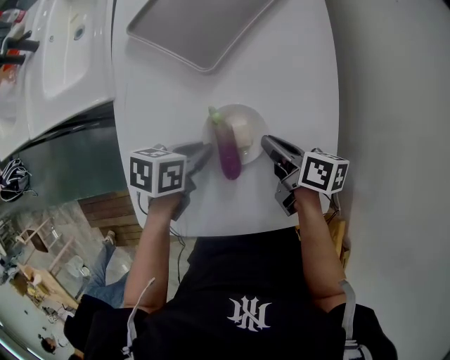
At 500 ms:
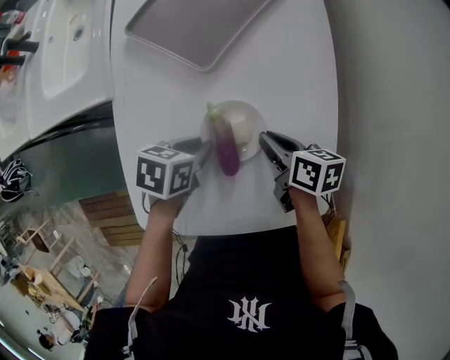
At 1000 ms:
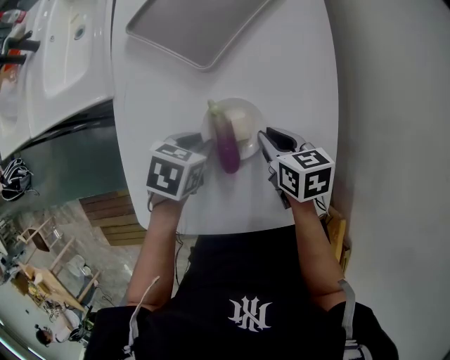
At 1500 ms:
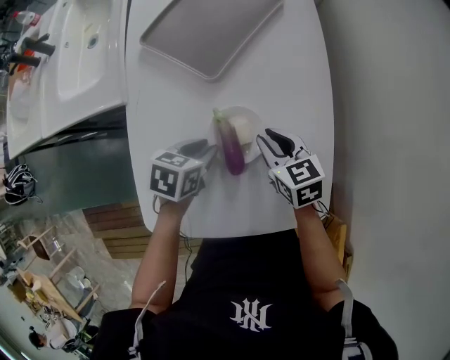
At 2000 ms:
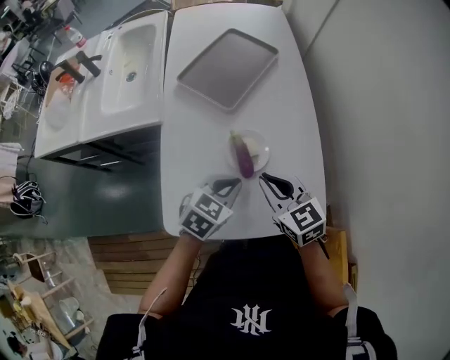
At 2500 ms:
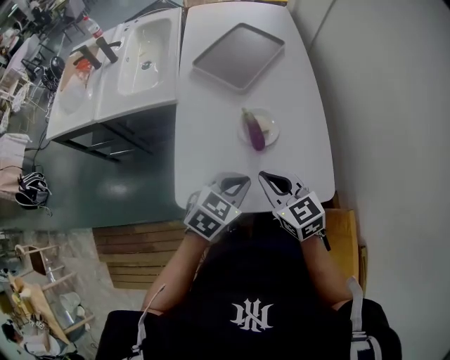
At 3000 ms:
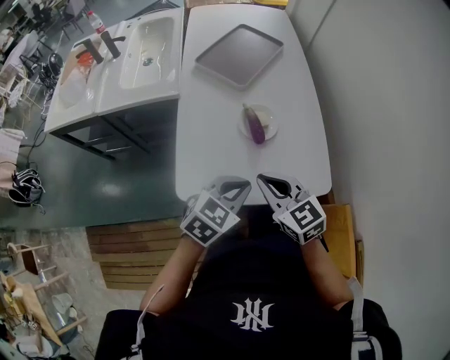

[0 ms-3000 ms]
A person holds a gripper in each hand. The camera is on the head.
0 ms to 1500 ms: The right gripper twists approximately 50 degrees counterclockwise, seen from behind.
1500 ms to 3000 ms: The right gripper changes place by roughly 30 cm, and swivels roughly 20 degrees.

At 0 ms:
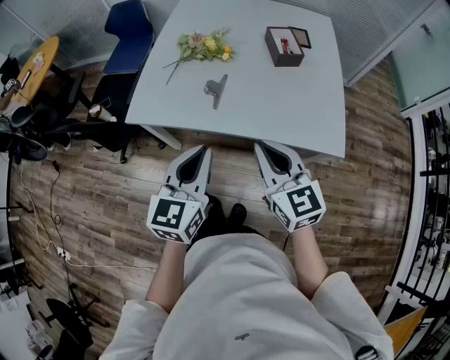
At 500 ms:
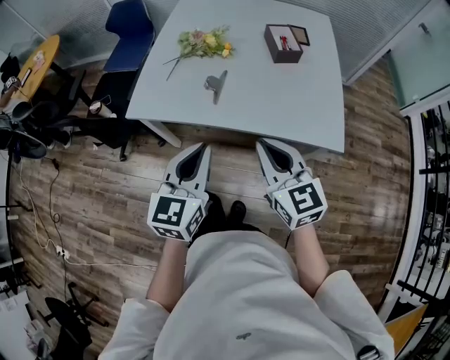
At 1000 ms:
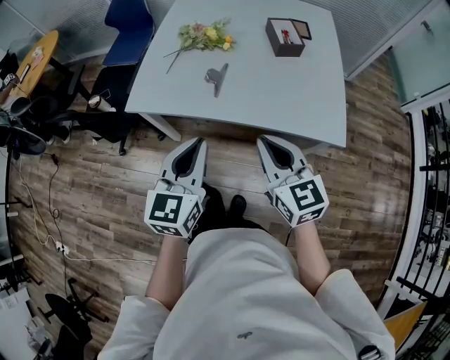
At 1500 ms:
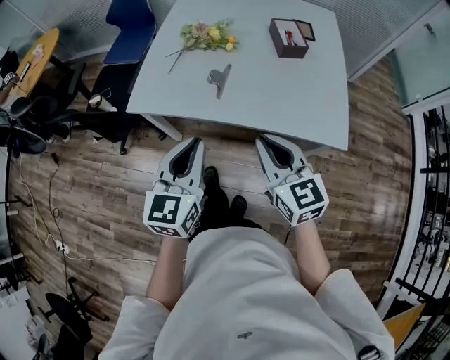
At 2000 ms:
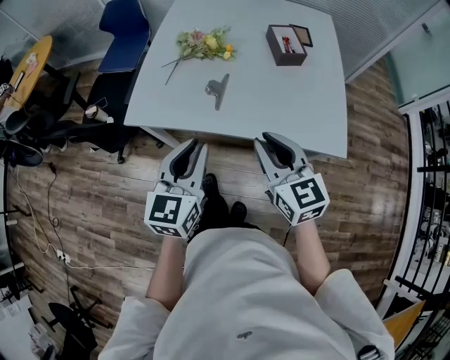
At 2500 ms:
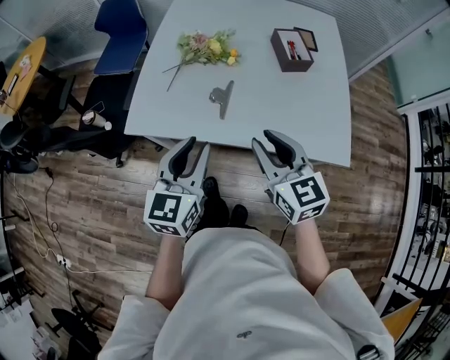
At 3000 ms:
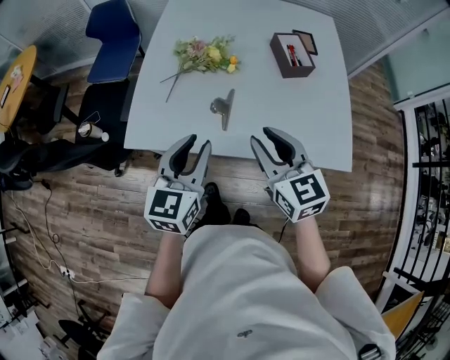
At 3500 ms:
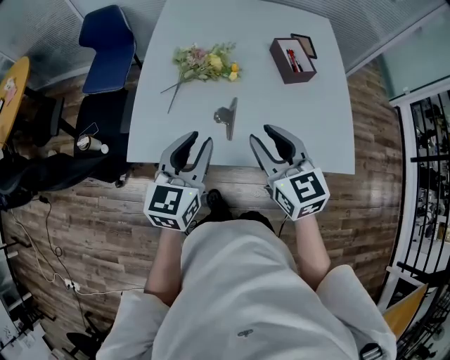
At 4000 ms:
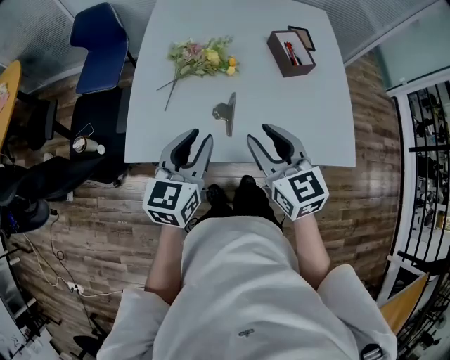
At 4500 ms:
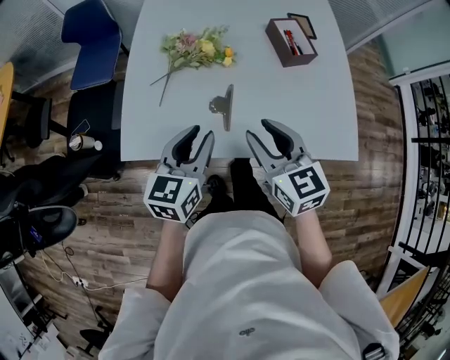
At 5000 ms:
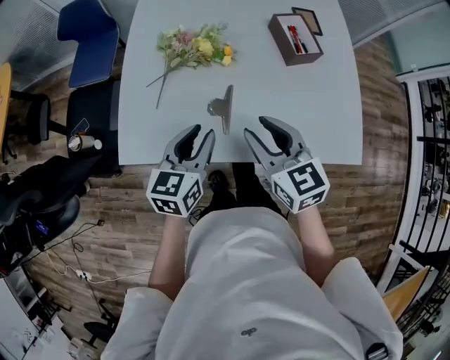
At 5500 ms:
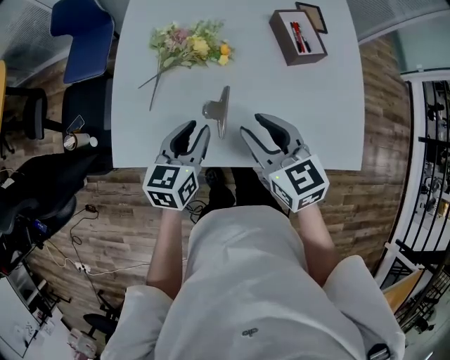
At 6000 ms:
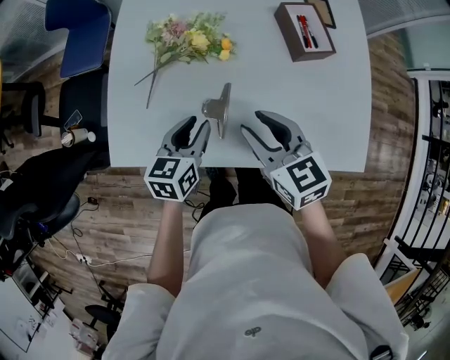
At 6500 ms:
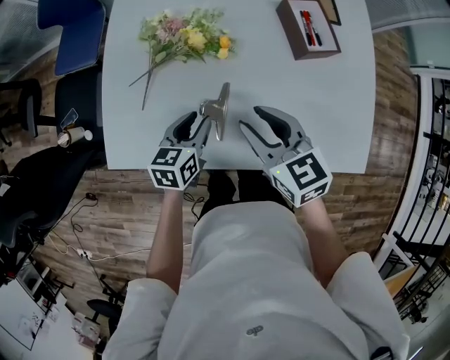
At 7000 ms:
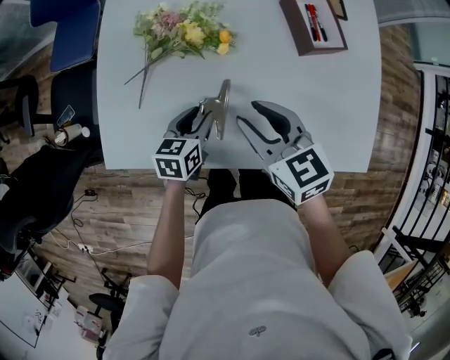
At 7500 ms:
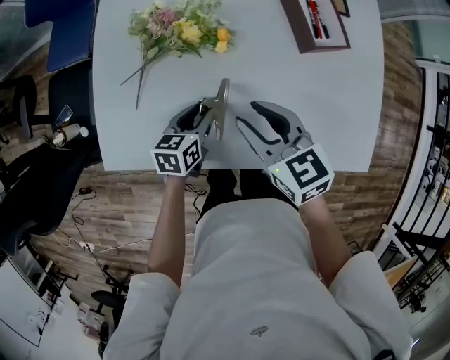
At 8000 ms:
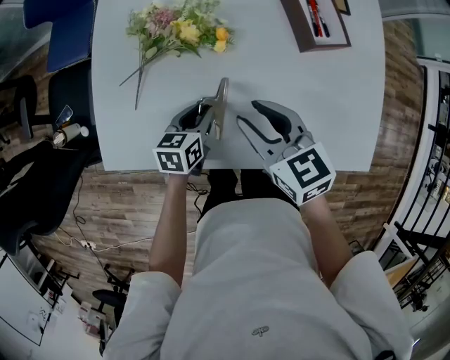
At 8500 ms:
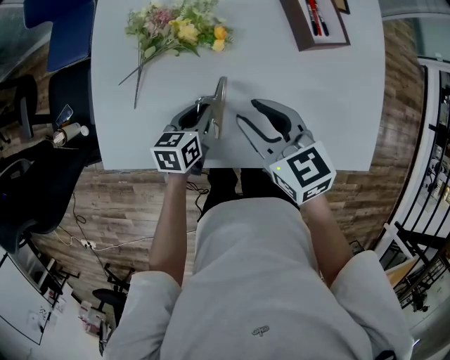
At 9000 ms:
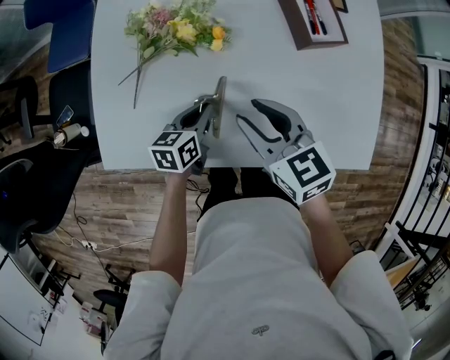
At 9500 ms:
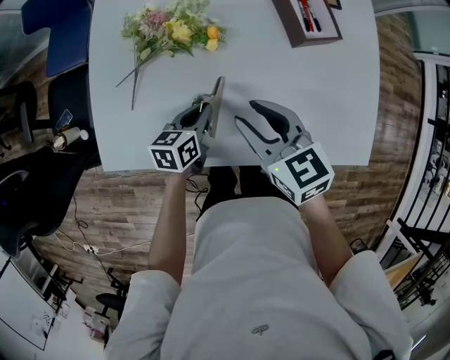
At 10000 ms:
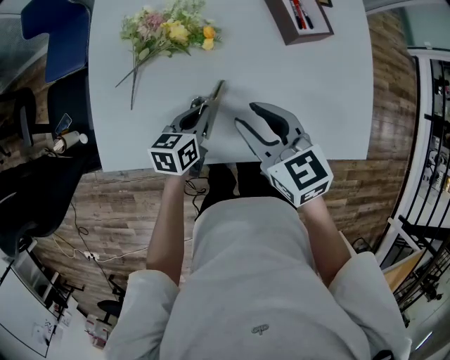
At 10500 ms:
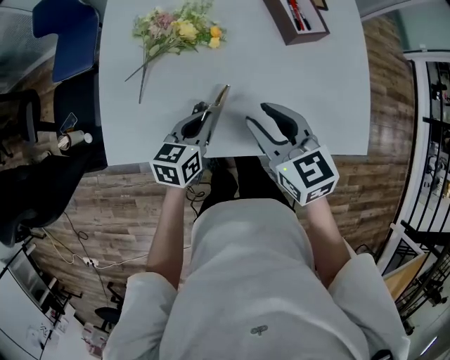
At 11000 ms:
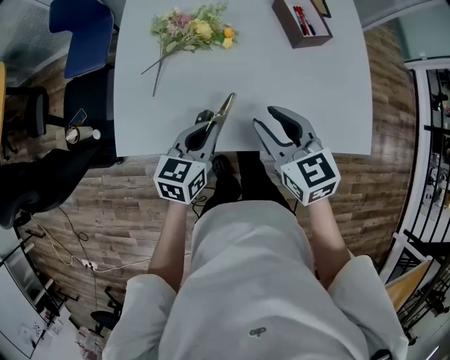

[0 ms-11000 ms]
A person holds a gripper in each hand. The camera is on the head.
0 ms to 2000 ms: There are only small adjustments of the grippers.
2000 ms to 3500 ms: The left gripper travels forward by approximately 15 cm. Meanwhile the right gripper moves forward and to the left, roughly 15 cm.
3500 ms to 5500 ms: The left gripper is displaced downward and forward by approximately 15 cm; the right gripper travels forward and downward by about 10 cm.
5500 ms to 7500 ms: The left gripper heads downward, covering some 15 cm. The right gripper is displaced downward and forward by some 10 cm.
7500 ms to 9000 ms: The left gripper closes up.
9000 ms to 11000 ms: The left gripper heads upward and backward, covering approximately 15 cm, and swivels roughly 20 degrees. Meanwhile the right gripper goes about 10 cm backward.

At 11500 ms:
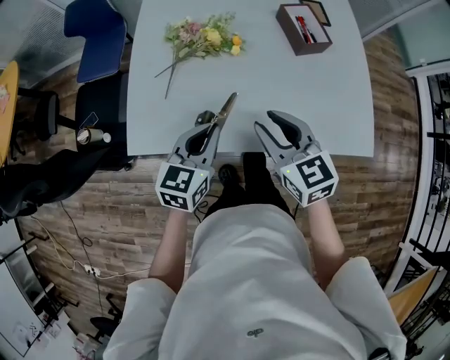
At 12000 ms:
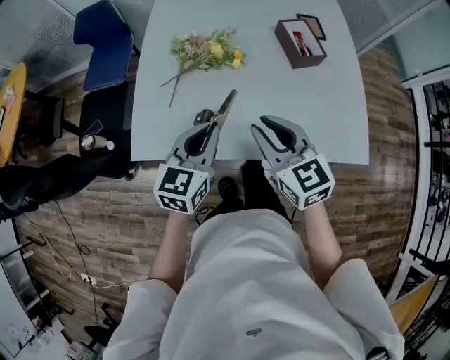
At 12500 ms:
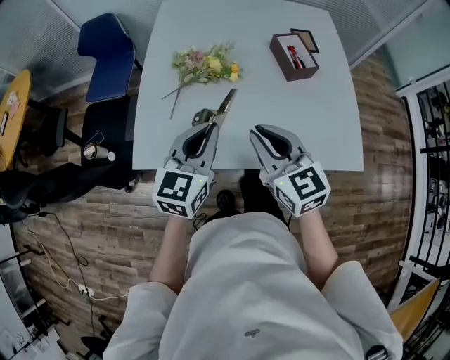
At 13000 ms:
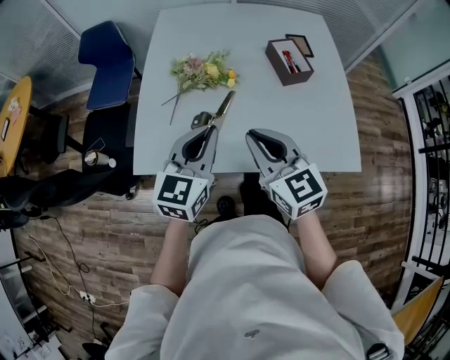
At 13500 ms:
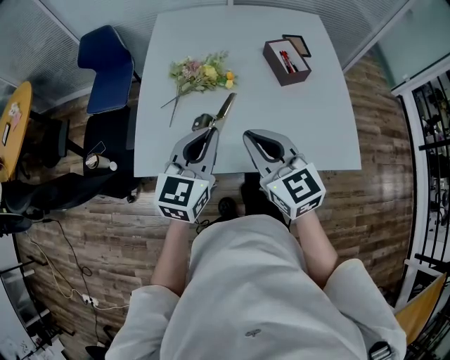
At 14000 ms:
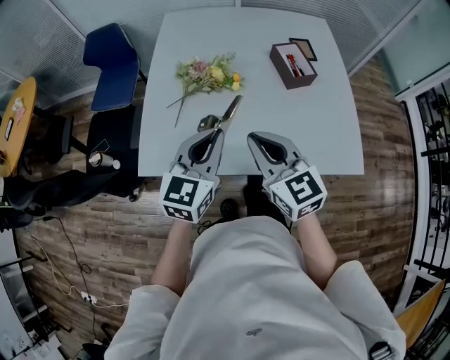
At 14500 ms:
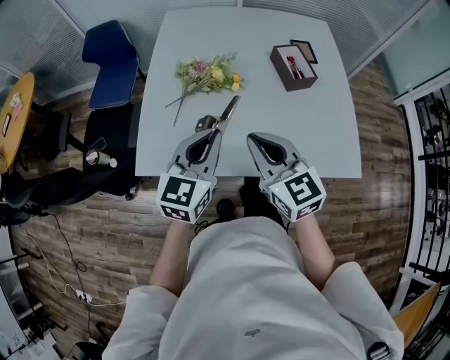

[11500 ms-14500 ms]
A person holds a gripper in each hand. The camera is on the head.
11500 ms to 13000 ms: The grippers both shift upward by about 10 cm. The right gripper closes its fingers.
13000 ms to 14500 ms: Neither gripper changes place.

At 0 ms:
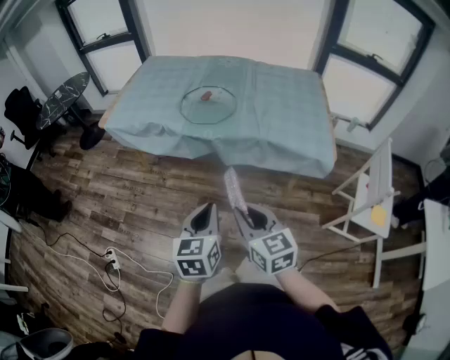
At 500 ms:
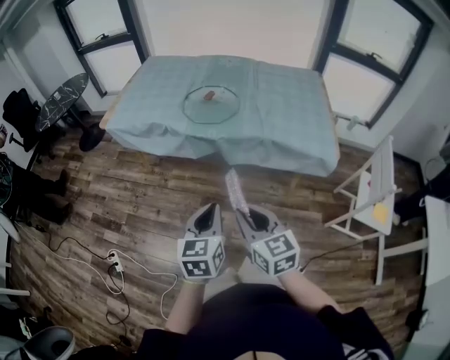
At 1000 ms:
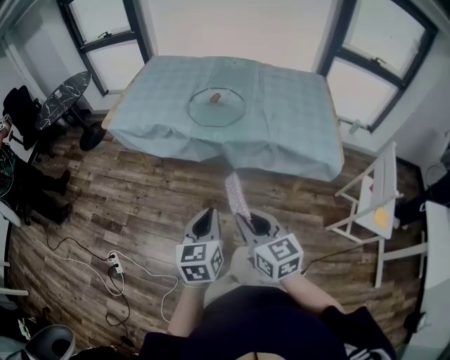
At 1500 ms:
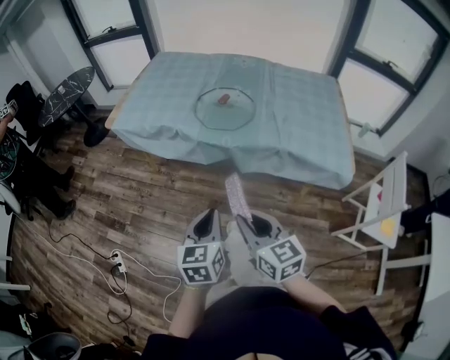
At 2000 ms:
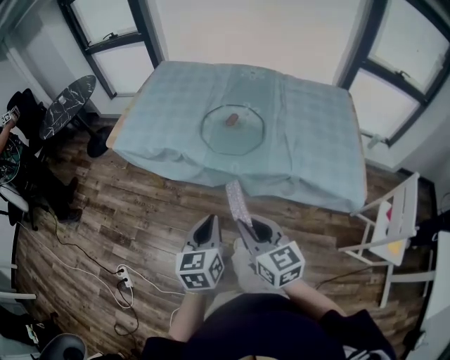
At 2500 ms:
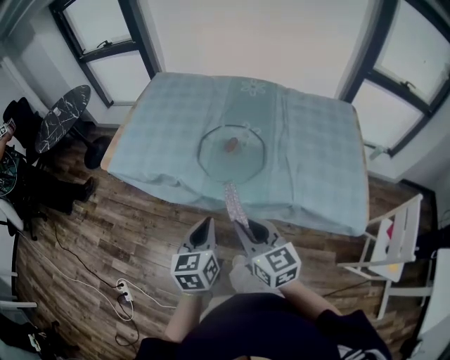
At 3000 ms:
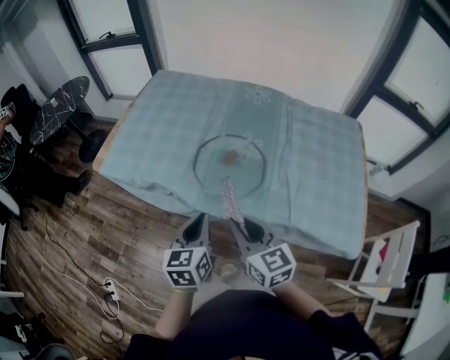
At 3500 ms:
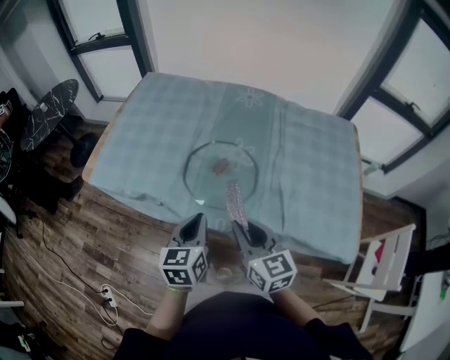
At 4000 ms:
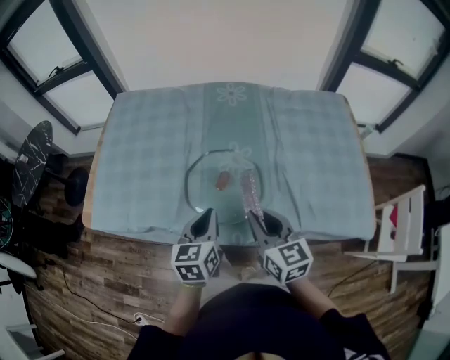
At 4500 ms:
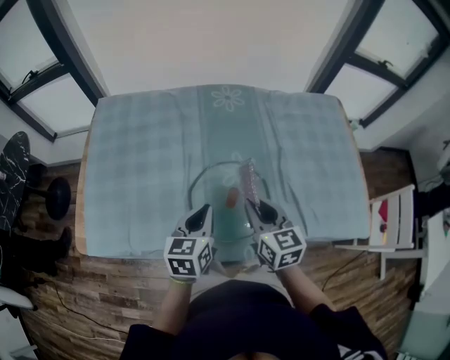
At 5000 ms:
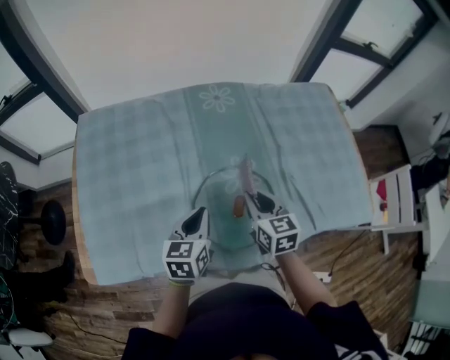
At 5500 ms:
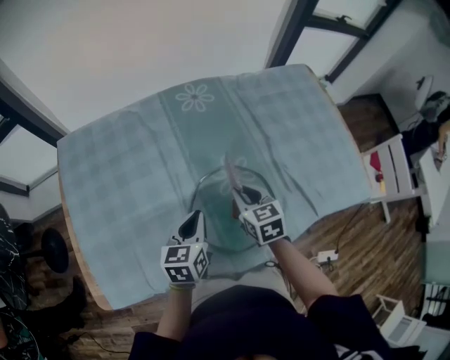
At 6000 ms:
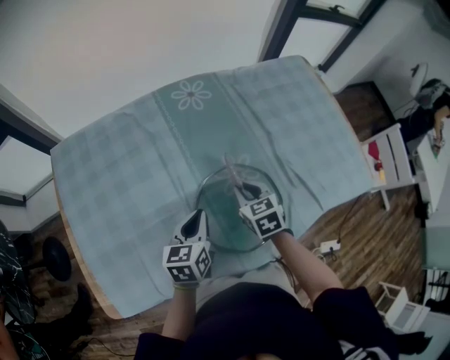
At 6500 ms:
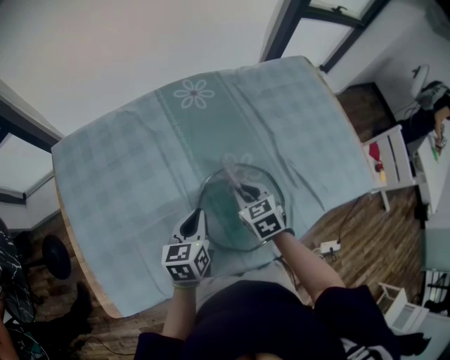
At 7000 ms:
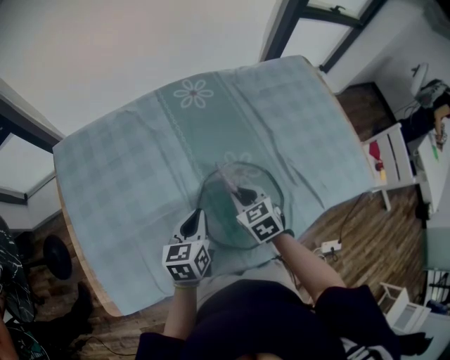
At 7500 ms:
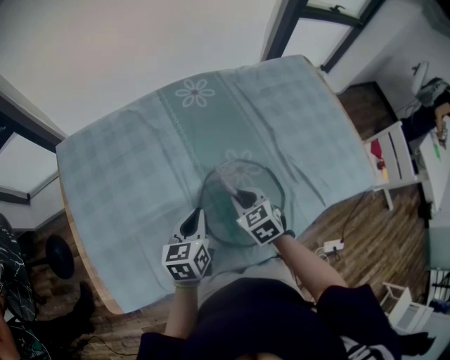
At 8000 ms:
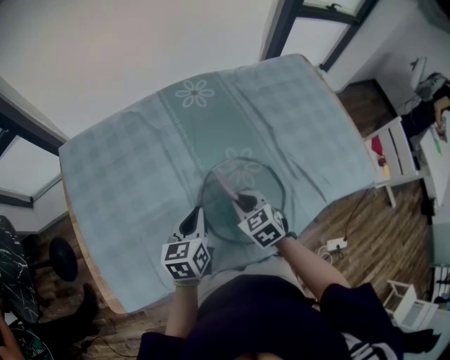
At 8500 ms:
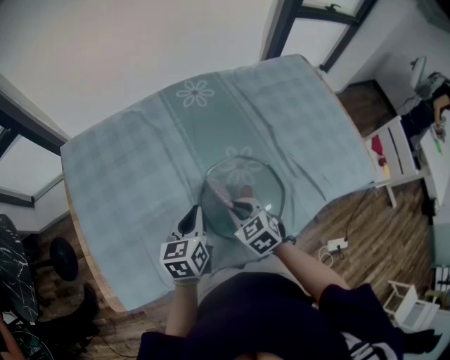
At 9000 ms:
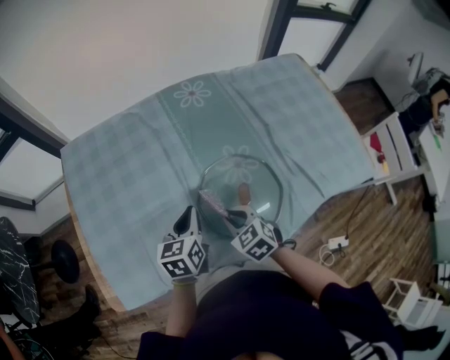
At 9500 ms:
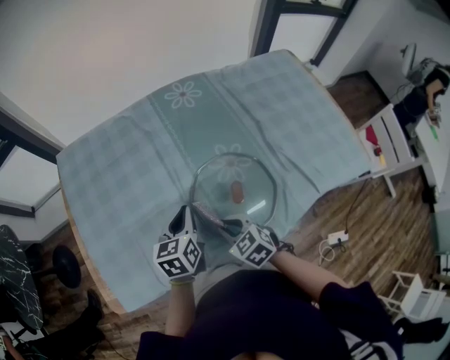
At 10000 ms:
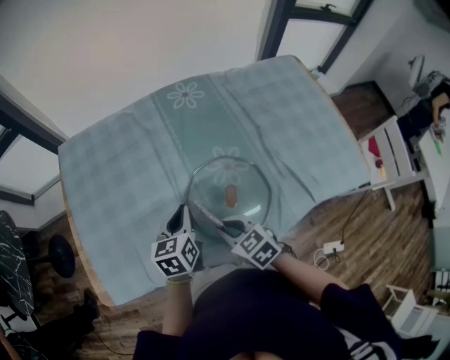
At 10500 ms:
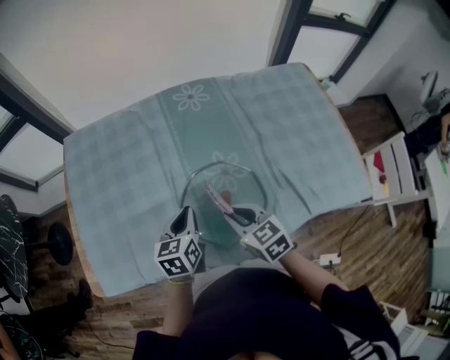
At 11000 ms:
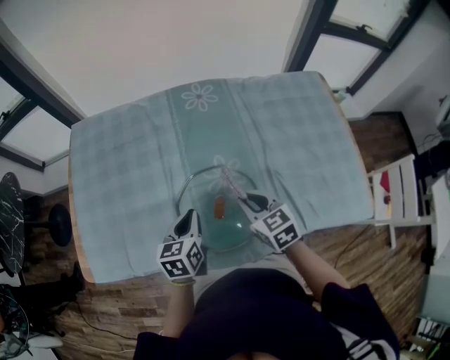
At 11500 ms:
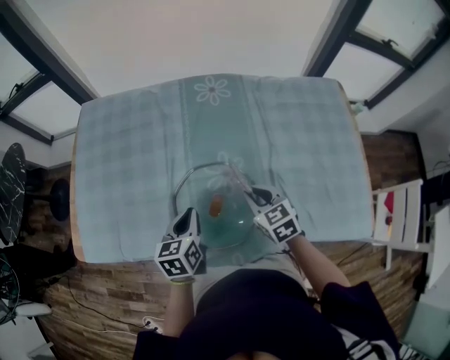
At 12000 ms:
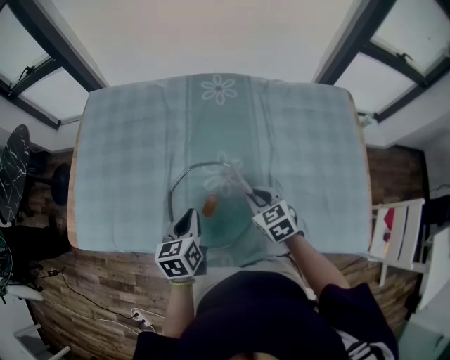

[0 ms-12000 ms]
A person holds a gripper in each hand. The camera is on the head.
0 ms to 2000 ms: The grippers both shift forward by some 20 cm.
2000 ms to 4000 ms: Both grippers move forward, roughly 30 cm.
4000 ms to 6000 ms: The right gripper changes place by about 25 cm, and changes its angle by roughly 40 degrees. The left gripper changes place by approximately 20 cm, and turns by roughly 30 degrees.
6000 ms to 8000 ms: The right gripper heads backward, covering some 5 cm.
8000 ms to 10000 ms: The right gripper travels backward by about 10 cm.
10000 ms to 12000 ms: The left gripper moves to the right and backward, approximately 10 cm, and turns by some 20 degrees; the right gripper goes some 20 cm to the right.
